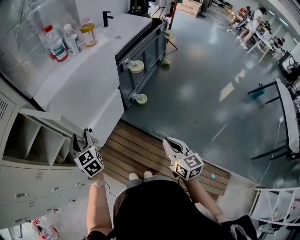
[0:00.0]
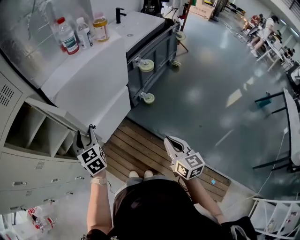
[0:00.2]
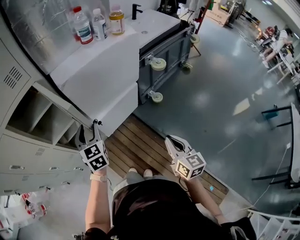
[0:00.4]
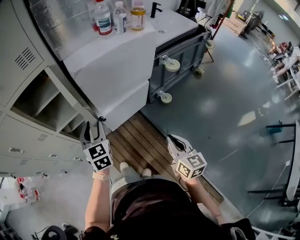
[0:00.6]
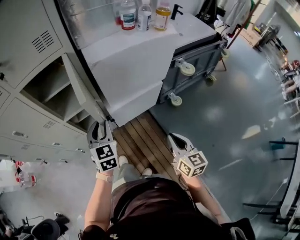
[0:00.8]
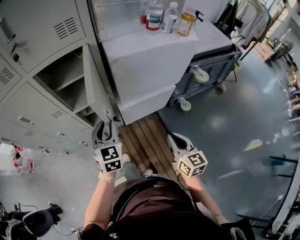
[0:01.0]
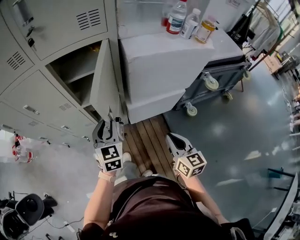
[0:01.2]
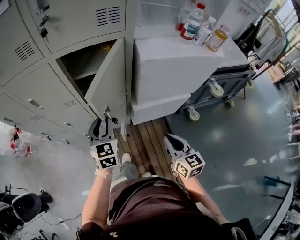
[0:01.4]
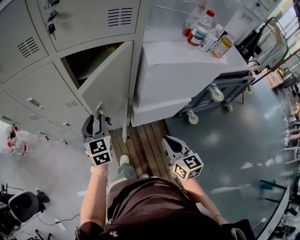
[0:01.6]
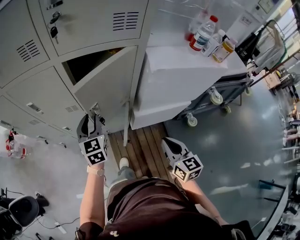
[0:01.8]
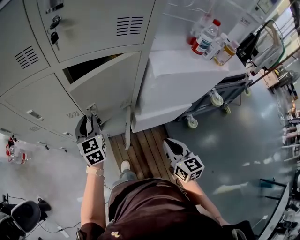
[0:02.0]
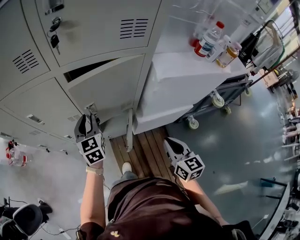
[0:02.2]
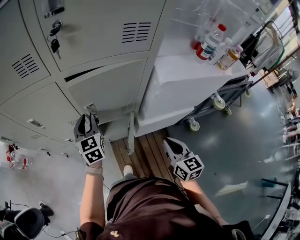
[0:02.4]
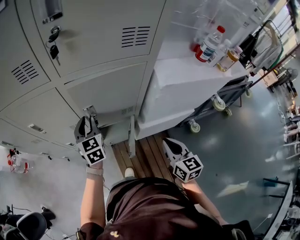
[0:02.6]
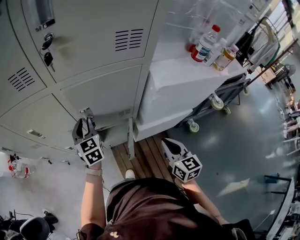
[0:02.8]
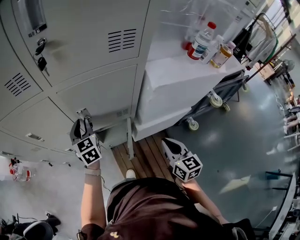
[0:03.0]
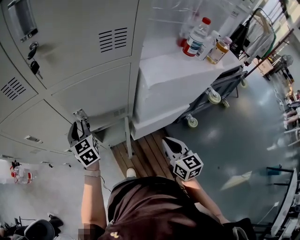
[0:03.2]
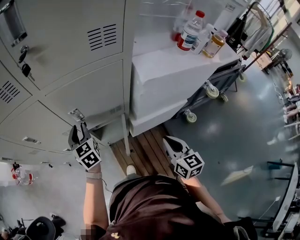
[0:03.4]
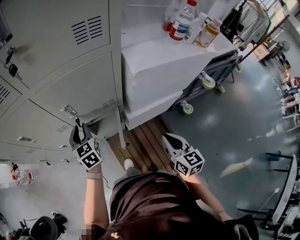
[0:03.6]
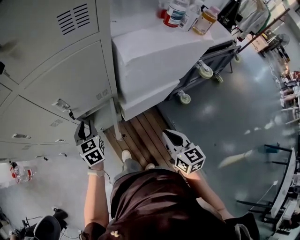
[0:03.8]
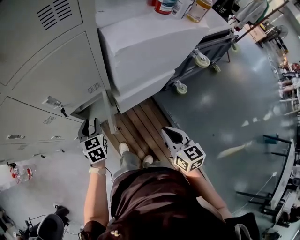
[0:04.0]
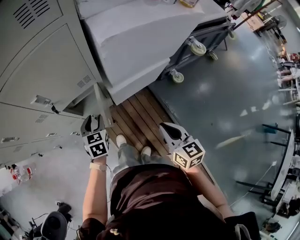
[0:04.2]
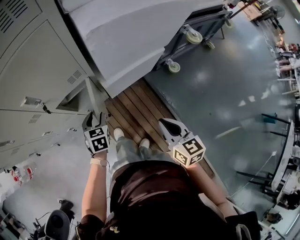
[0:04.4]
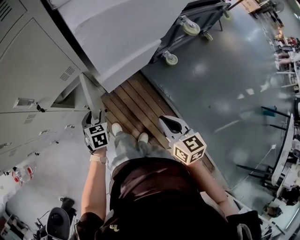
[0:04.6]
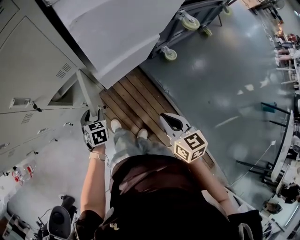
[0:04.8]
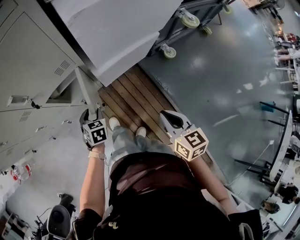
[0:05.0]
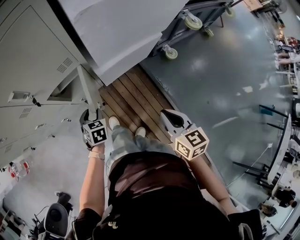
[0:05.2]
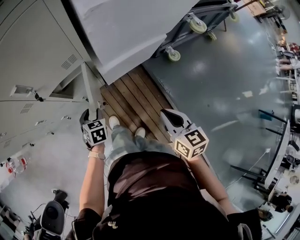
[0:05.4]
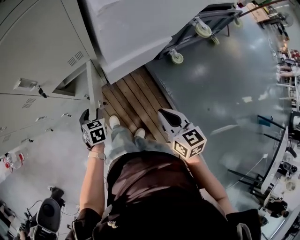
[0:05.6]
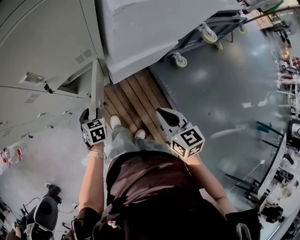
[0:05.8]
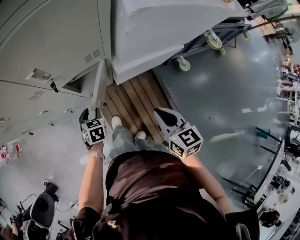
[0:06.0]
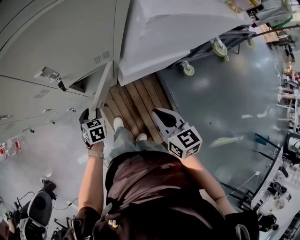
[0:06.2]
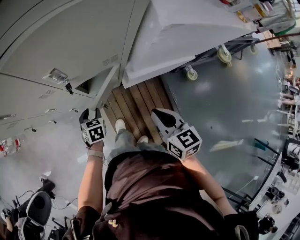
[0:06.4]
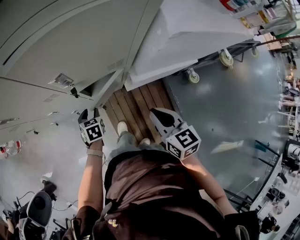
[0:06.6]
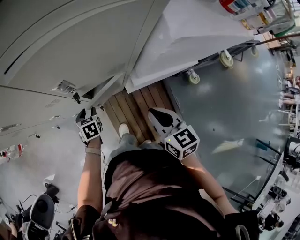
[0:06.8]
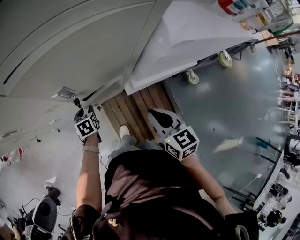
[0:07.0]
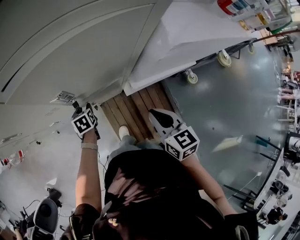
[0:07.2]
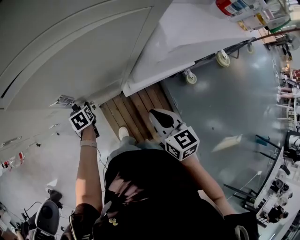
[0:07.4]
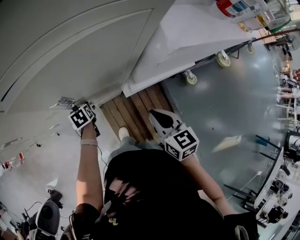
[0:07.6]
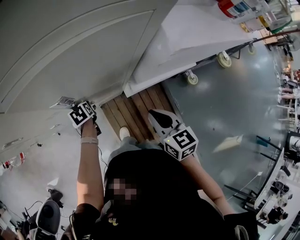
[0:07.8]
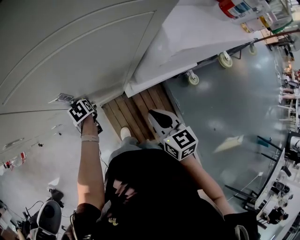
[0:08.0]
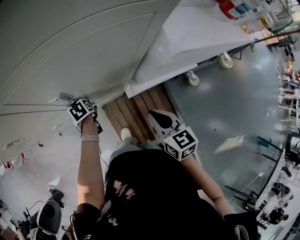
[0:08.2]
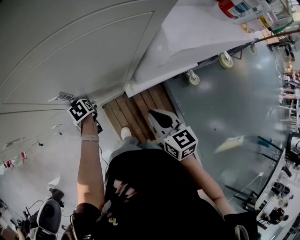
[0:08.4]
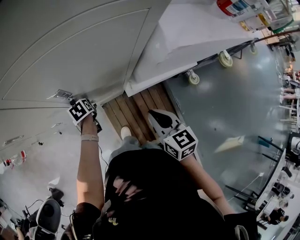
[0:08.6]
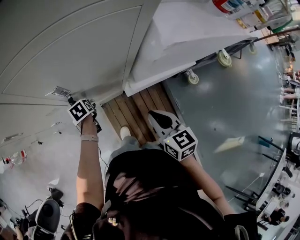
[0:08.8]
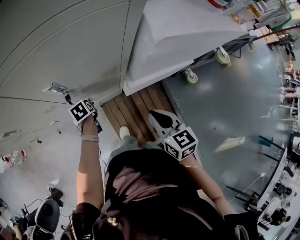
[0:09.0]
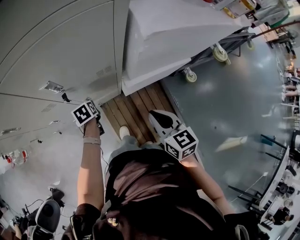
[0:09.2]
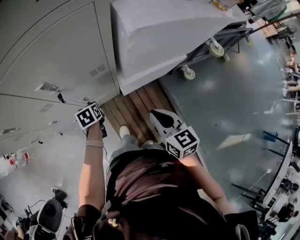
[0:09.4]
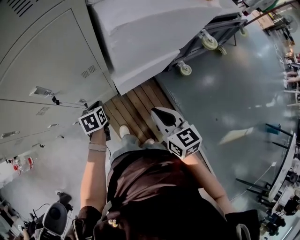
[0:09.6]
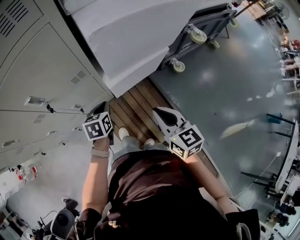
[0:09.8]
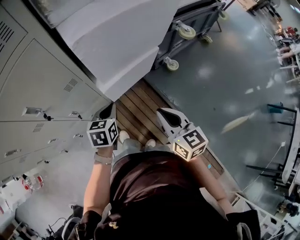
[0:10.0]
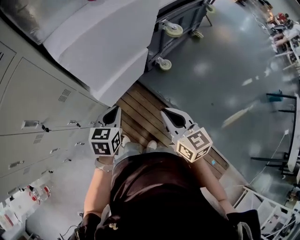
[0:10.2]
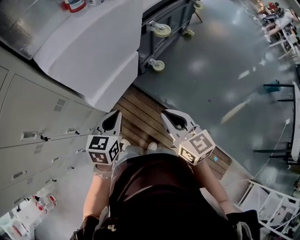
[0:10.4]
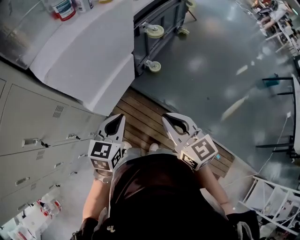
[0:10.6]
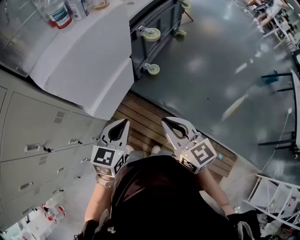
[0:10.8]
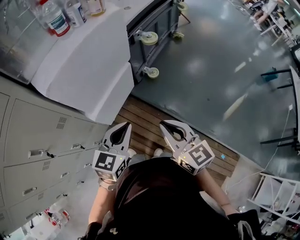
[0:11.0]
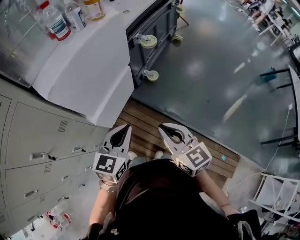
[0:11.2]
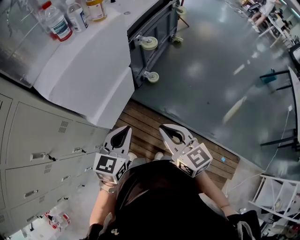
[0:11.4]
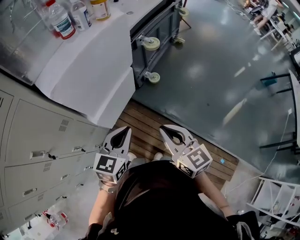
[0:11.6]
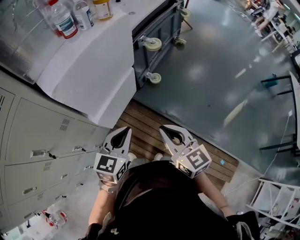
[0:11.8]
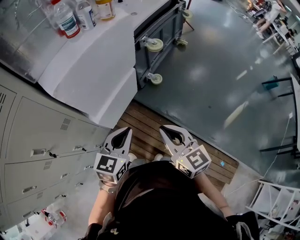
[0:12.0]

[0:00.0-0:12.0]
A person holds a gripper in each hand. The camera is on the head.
0:00.0 to 0:01.6: The right gripper ends up some 30 cm from where it was, and changes its angle by approximately 40 degrees; the left gripper changes place by approximately 25 cm, rotates roughly 20 degrees, and closes up.
0:01.6 to 0:03.0: The left gripper is displaced forward and to the left by some 15 cm, while the right gripper is displaced forward by roughly 10 cm.
0:03.0 to 0:04.4: The left gripper is displaced to the right, downward and backward by some 35 cm, and rotates approximately 40 degrees; the right gripper heads backward, to the right and downward, covering roughly 20 cm.
0:04.4 to 0:06.0: The right gripper moves to the left and forward, roughly 10 cm. Meanwhile the left gripper travels to the left and downward by roughly 15 cm.
0:06.0 to 0:07.6: The two grippers go roughly 15 cm forward and to the left. The left gripper turns by some 30 degrees.
0:07.6 to 0:09.0: The grippers stay close to where they were, moving slightly.
0:09.0 to 0:10.4: The right gripper changes place by some 30 cm, and changes its angle by approximately 30 degrees. Meanwhile the left gripper shifts by approximately 50 cm, tips its fingers upward by approximately 40 degrees, and closes its fingers.
0:10.4 to 0:12.0: The left gripper goes roughly 5 cm upward.

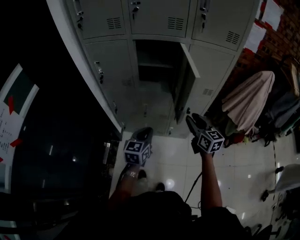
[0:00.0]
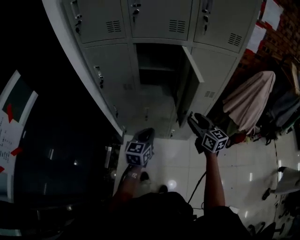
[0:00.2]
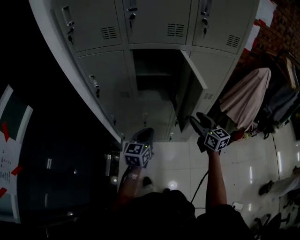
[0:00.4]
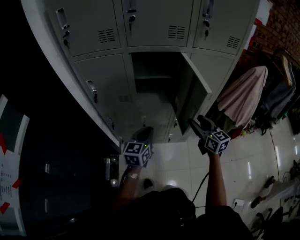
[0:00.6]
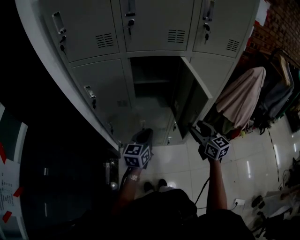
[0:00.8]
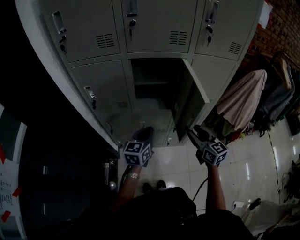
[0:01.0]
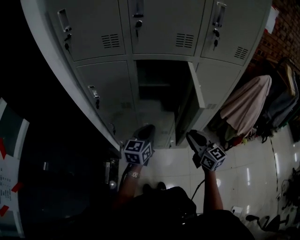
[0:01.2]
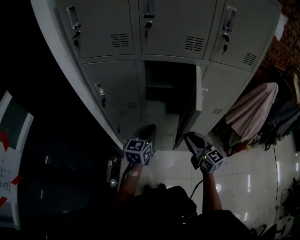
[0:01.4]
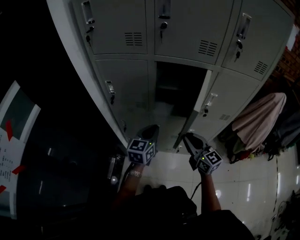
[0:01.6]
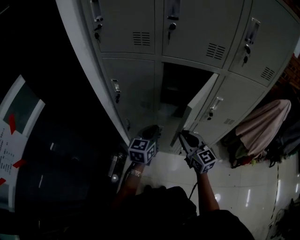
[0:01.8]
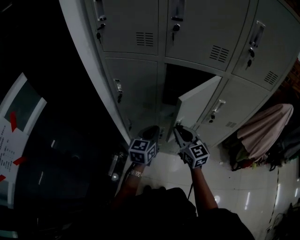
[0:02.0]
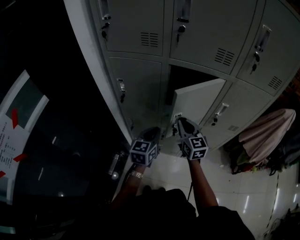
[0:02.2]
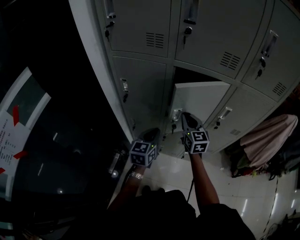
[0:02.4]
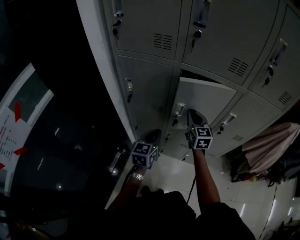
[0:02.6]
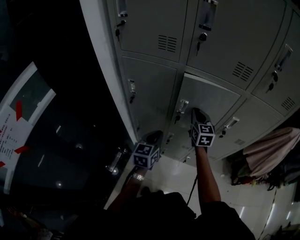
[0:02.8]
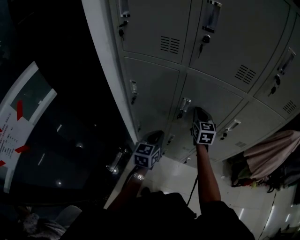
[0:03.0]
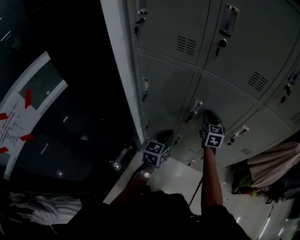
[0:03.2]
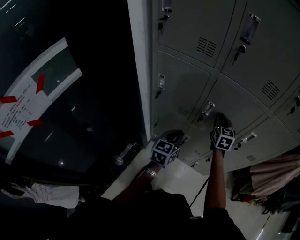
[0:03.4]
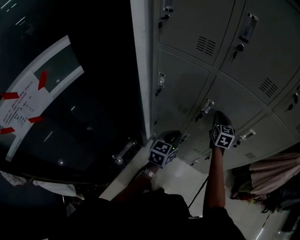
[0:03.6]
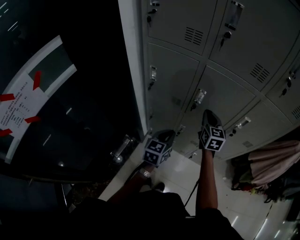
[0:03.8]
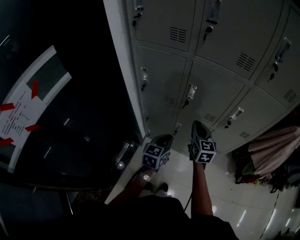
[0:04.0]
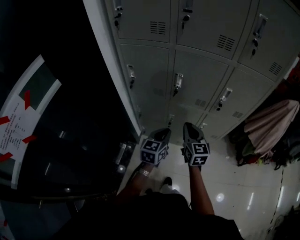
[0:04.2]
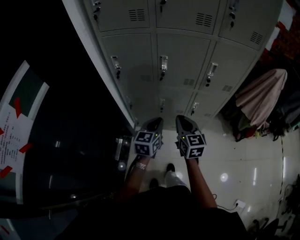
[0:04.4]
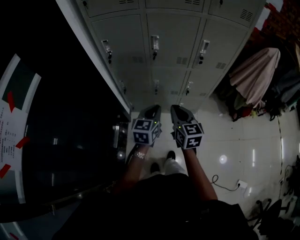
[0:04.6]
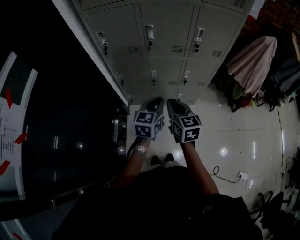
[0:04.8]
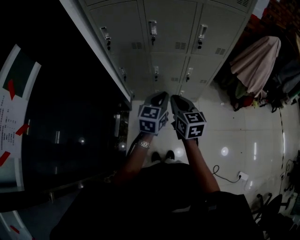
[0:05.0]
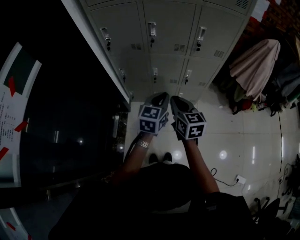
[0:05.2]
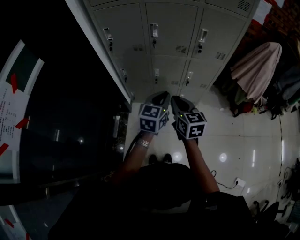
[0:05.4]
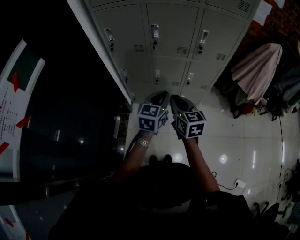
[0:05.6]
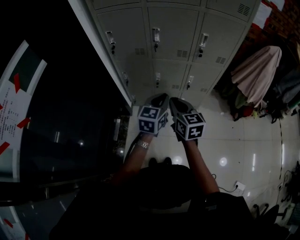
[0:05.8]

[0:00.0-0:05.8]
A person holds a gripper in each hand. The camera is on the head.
0:00.0 to 0:01.4: The right gripper heads to the left and forward, covering about 10 cm; the left gripper moves forward, roughly 15 cm.
0:01.4 to 0:02.8: The right gripper travels forward by about 25 cm; the left gripper goes roughly 5 cm to the left.
0:02.8 to 0:04.4: The left gripper goes approximately 15 cm backward. The right gripper heads backward, covering approximately 30 cm.
0:04.4 to 0:05.8: The left gripper is displaced backward and to the right by roughly 10 cm; the right gripper moves backward, approximately 10 cm.

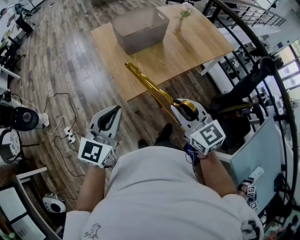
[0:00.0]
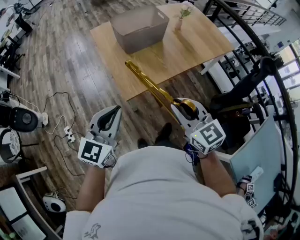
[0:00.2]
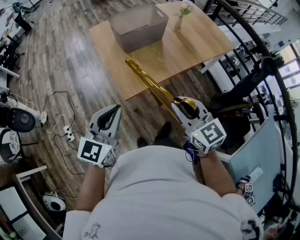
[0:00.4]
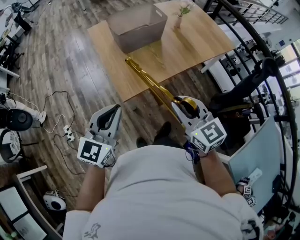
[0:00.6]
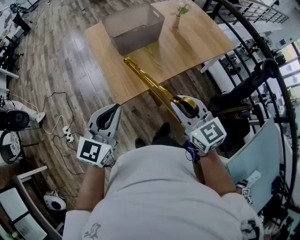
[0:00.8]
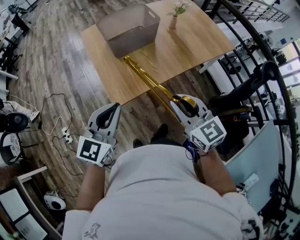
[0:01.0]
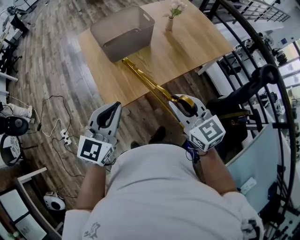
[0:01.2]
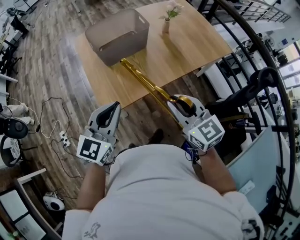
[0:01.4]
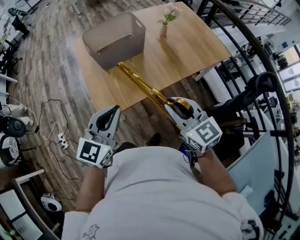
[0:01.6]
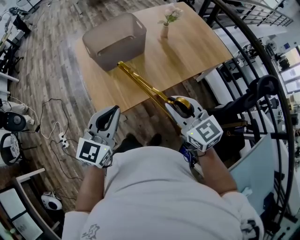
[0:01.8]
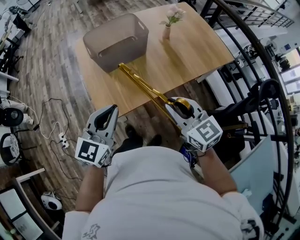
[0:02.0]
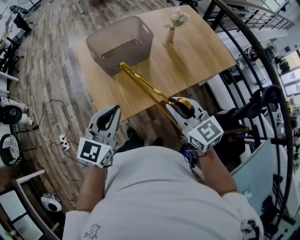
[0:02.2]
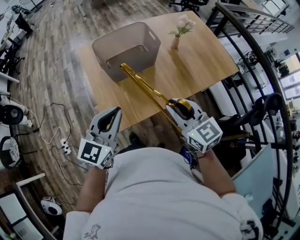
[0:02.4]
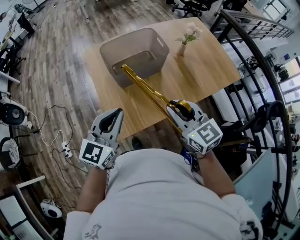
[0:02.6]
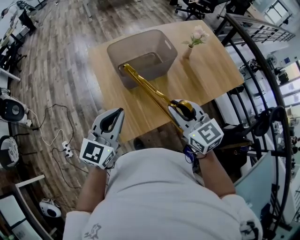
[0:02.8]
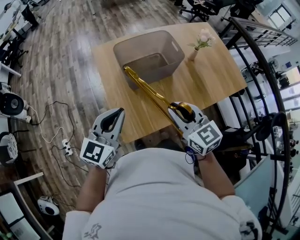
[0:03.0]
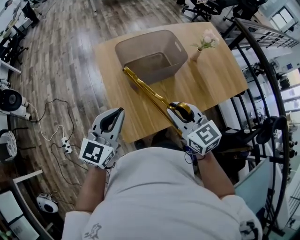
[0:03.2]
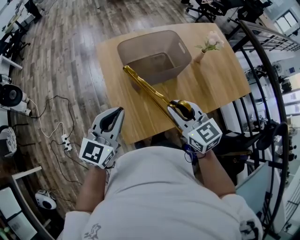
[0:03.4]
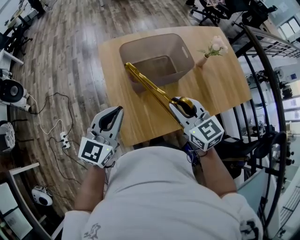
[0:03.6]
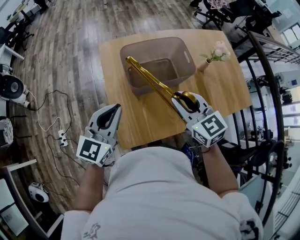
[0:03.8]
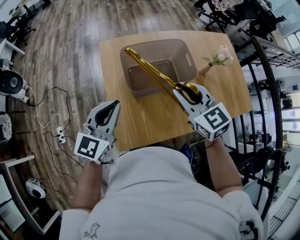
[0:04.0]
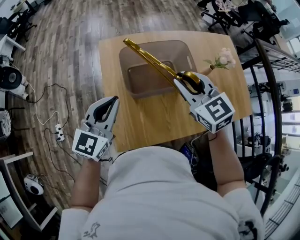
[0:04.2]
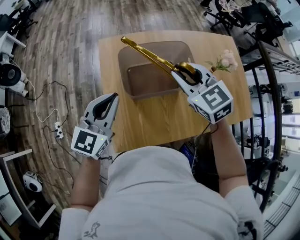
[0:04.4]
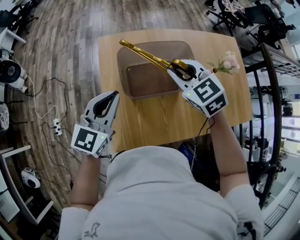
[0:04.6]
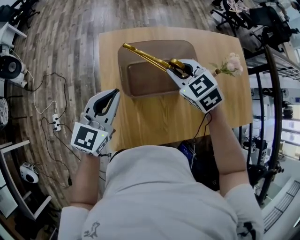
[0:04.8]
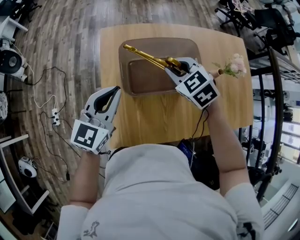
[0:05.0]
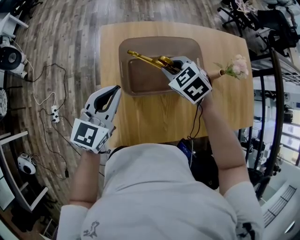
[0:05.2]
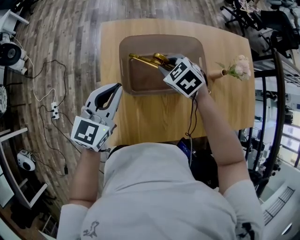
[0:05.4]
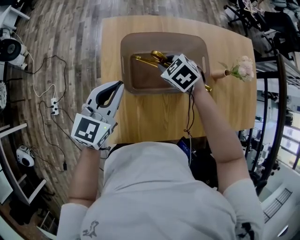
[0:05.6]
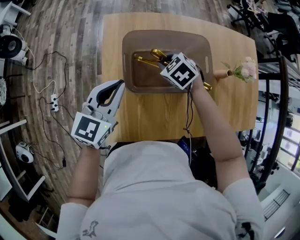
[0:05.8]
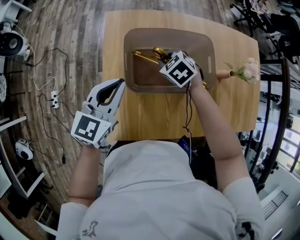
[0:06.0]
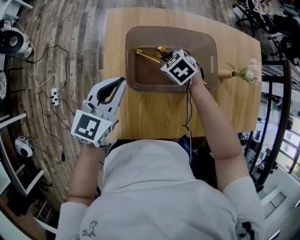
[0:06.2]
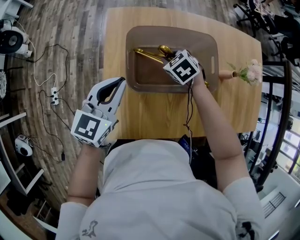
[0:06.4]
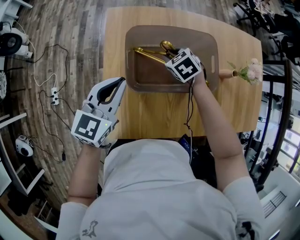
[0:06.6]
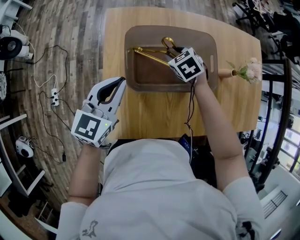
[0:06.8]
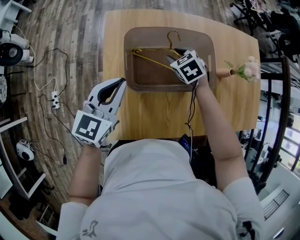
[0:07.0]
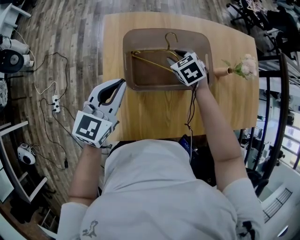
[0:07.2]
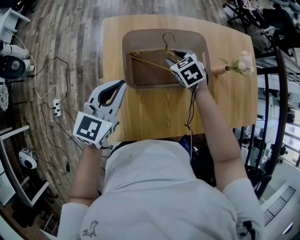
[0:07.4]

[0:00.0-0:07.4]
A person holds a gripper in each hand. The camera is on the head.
0:00.0 to 0:01.4: Both grippers travel together to the right and forward, some 20 cm.
0:01.4 to 0:03.0: The two grippers go about 20 cm forward and to the left.
0:03.0 to 0:04.4: The left gripper shifts about 15 cm forward, while the right gripper shifts approximately 25 cm forward, and swivels some 30 degrees.
0:04.4 to 0:06.0: The left gripper moves downward and forward, some 10 cm; the right gripper is displaced downward and forward by about 25 cm, and points its fingers approximately 30 degrees further downward.
0:06.0 to 0:07.4: The right gripper heads to the right, covering approximately 5 cm, and opens.
